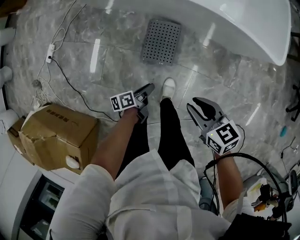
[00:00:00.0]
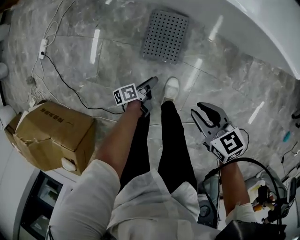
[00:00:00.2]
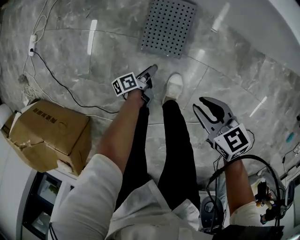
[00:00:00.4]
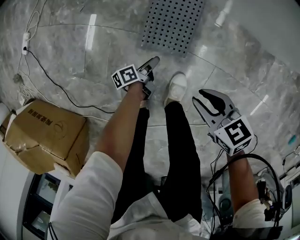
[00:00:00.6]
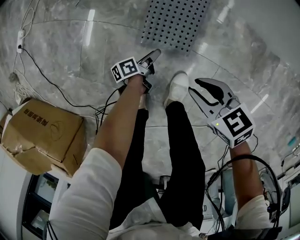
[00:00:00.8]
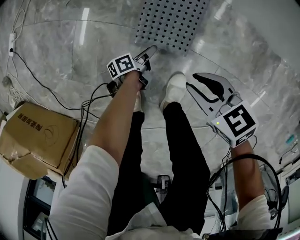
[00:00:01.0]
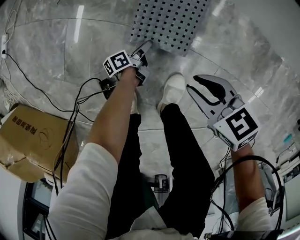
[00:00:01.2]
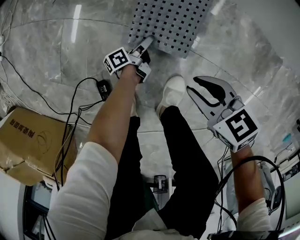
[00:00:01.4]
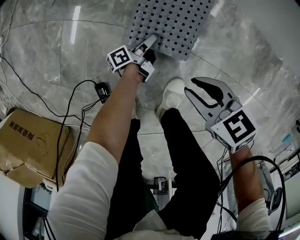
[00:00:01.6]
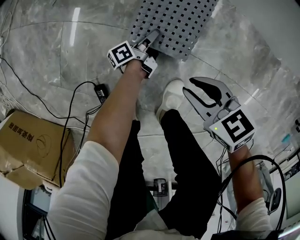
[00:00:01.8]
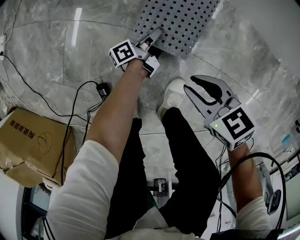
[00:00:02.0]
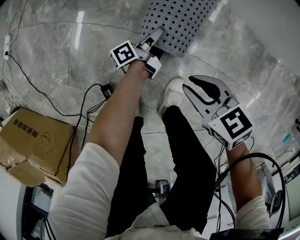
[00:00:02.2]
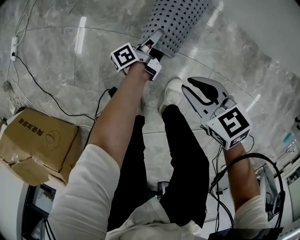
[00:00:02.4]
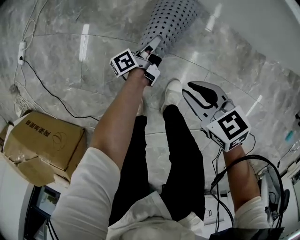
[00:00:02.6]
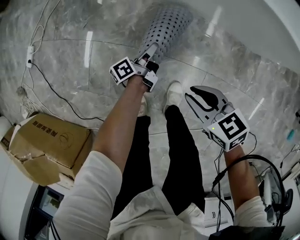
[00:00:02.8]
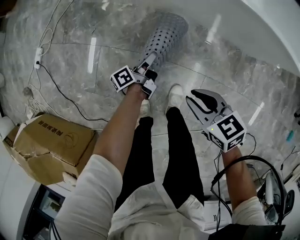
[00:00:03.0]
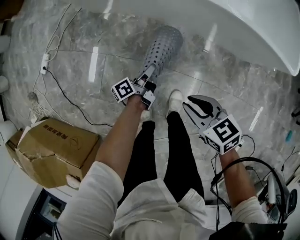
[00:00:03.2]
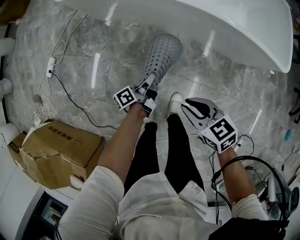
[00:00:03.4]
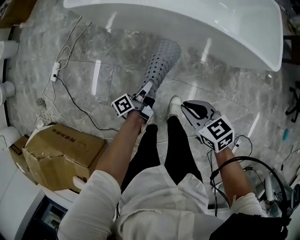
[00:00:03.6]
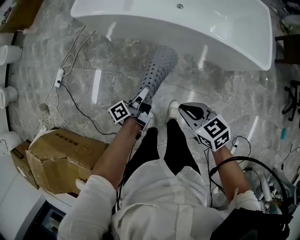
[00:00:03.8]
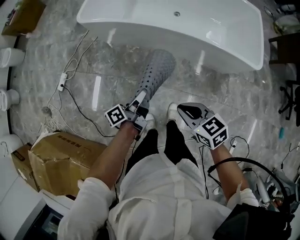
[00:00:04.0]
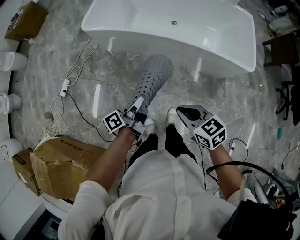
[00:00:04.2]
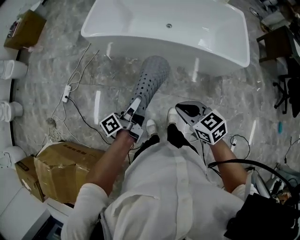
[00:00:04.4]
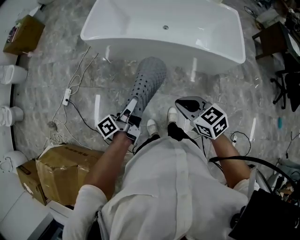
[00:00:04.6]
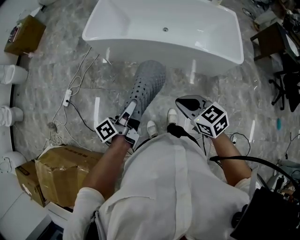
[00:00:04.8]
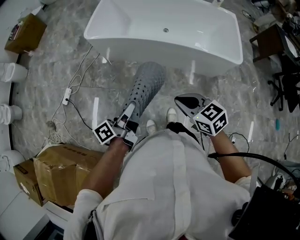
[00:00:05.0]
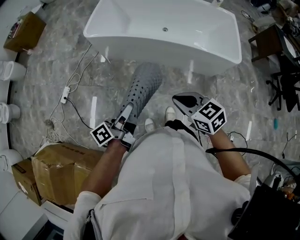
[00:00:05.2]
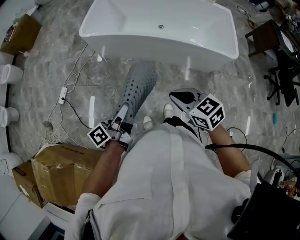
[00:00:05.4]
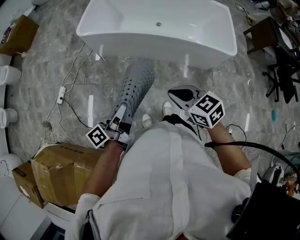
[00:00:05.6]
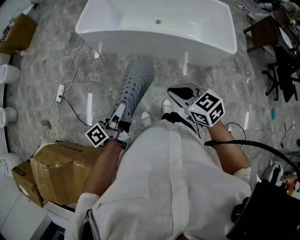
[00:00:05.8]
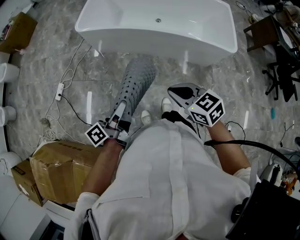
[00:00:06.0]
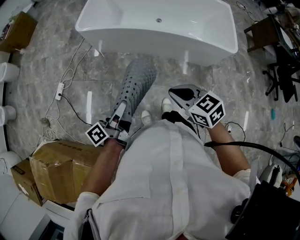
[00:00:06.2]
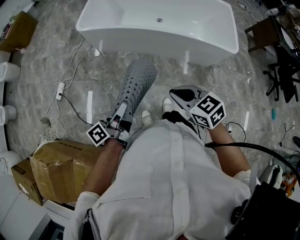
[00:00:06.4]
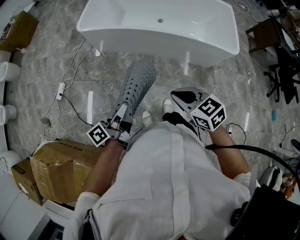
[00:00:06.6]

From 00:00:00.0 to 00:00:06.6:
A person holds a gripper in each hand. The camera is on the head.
From 00:00:00.0 to 00:00:01.6: The right gripper shifts approximately 40 cm downward, and turns by approximately 20 degrees.
From 00:00:01.6 to 00:00:03.2: The right gripper is displaced upward by approximately 35 cm.
From 00:00:03.2 to 00:00:05.0: The right gripper goes approximately 35 cm upward.

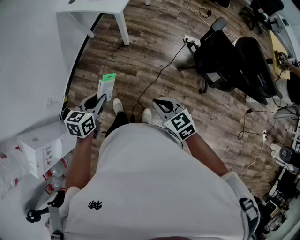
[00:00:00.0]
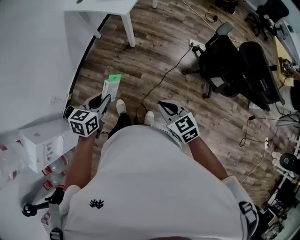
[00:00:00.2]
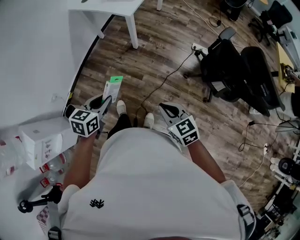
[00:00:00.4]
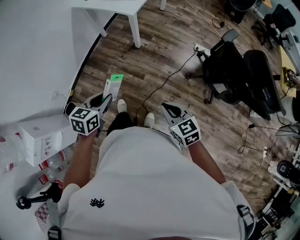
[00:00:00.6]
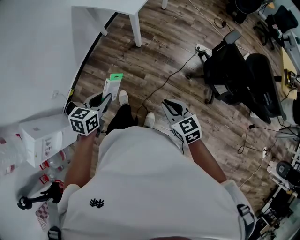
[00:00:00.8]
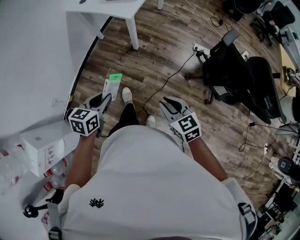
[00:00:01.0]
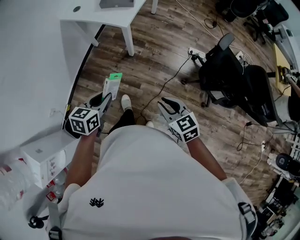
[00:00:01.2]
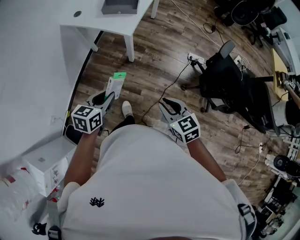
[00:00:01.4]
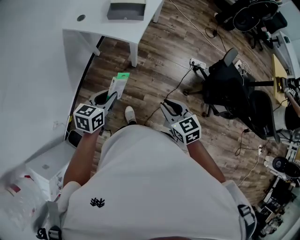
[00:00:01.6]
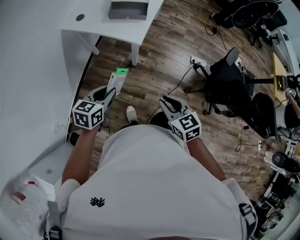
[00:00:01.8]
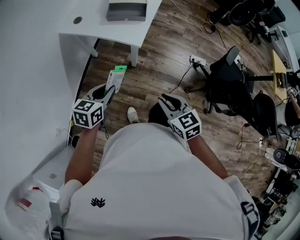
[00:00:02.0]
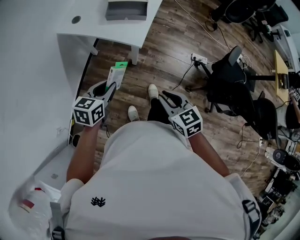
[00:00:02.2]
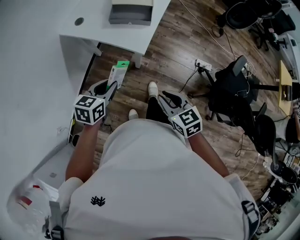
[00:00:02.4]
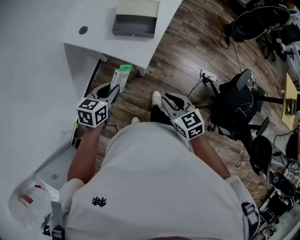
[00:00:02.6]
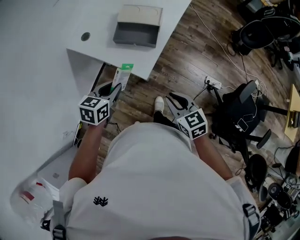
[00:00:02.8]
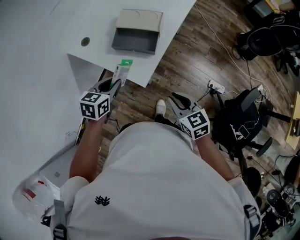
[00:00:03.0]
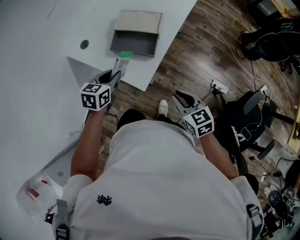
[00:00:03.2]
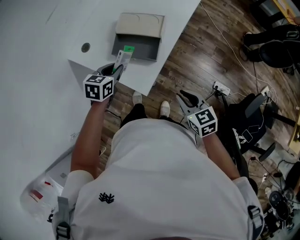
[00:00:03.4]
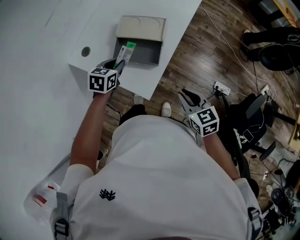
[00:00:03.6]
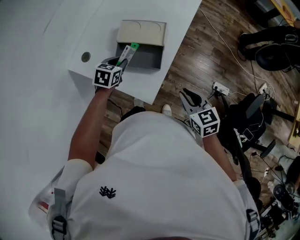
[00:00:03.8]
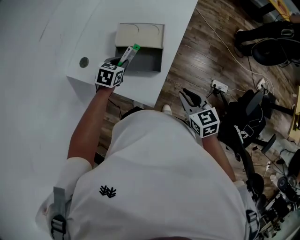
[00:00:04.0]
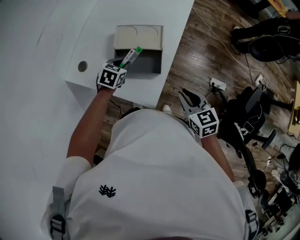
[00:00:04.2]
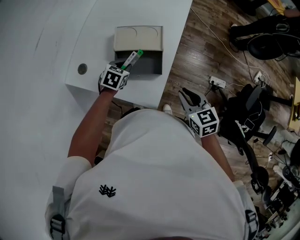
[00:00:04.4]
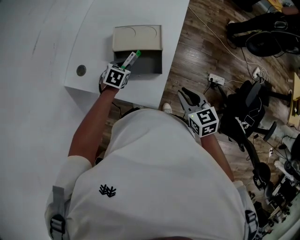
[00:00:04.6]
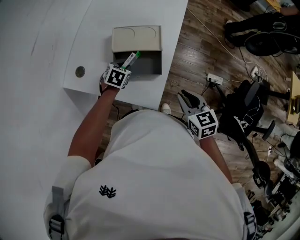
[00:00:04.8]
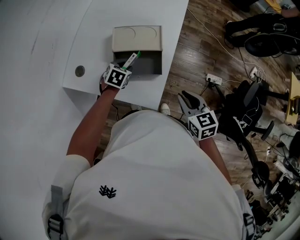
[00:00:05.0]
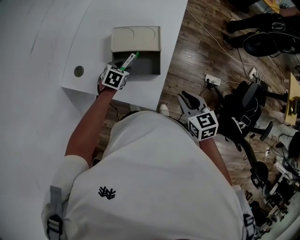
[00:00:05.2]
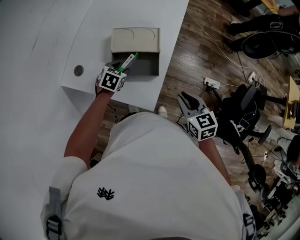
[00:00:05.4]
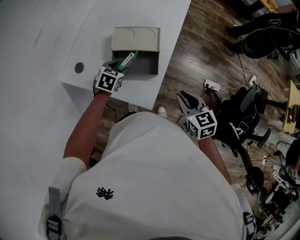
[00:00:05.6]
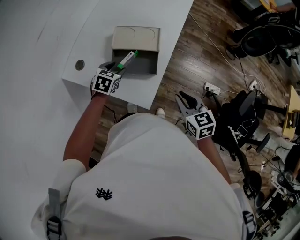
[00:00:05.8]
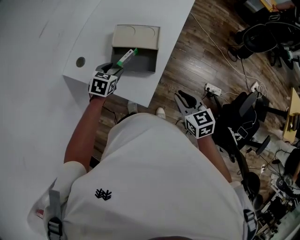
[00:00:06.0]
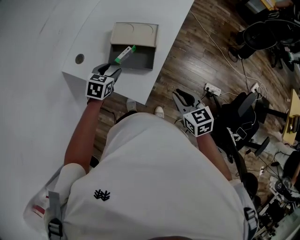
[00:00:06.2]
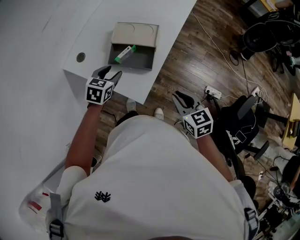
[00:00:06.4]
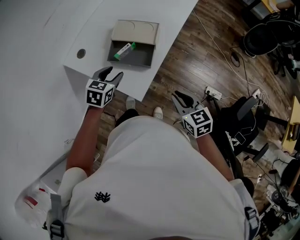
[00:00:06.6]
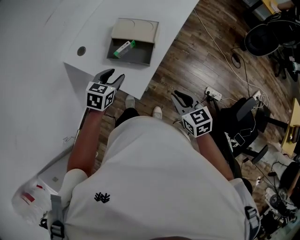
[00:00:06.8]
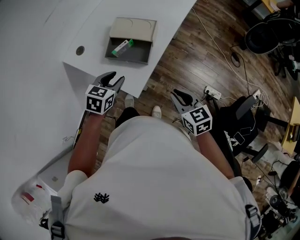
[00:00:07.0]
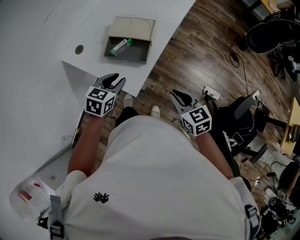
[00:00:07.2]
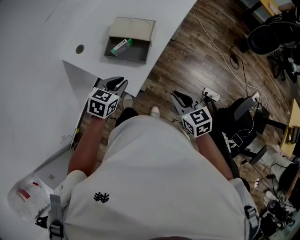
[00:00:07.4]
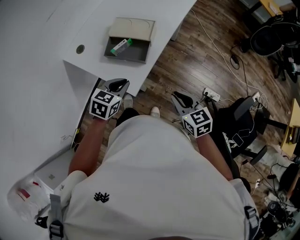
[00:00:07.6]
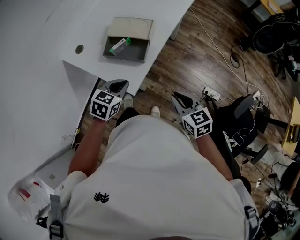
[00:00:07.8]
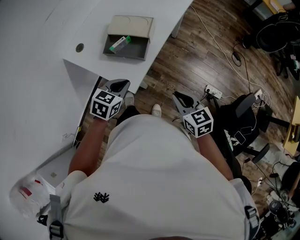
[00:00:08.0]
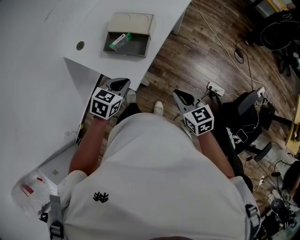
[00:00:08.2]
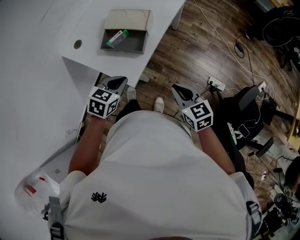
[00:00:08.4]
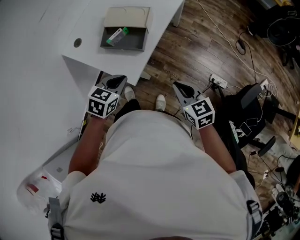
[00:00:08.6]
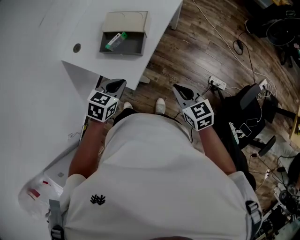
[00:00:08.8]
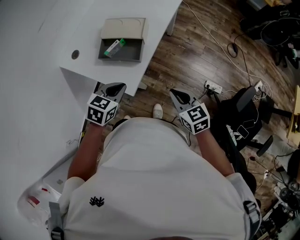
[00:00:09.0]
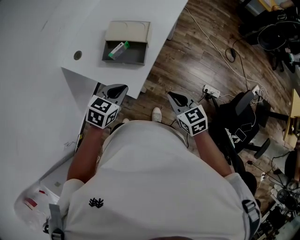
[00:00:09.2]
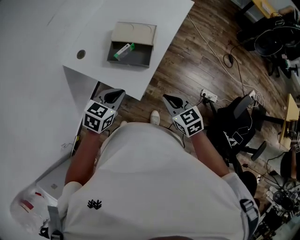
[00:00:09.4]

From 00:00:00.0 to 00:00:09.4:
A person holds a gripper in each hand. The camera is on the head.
From 00:00:00.0 to 00:00:01.6: Both grippers travel together forward, approximately 20 cm.
From 00:00:01.6 to 00:00:03.2: The grippers both shift forward by about 35 cm.
From 00:00:03.2 to 00:00:04.8: The right gripper moves forward, roughly 10 cm, and rotates about 20 degrees. The left gripper shifts about 20 cm forward and downward, and rotates some 30 degrees.
From 00:00:04.8 to 00:00:06.2: The left gripper is displaced upward and backward by roughly 10 cm, and opens.
From 00:00:06.2 to 00:00:07.8: The right gripper shifts about 5 cm backward; the left gripper is displaced backward and to the right by some 15 cm, and closes its fingers.
From 00:00:07.8 to 00:00:09.4: The left gripper moves to the left, some 5 cm. The right gripper goes roughly 10 cm to the left.

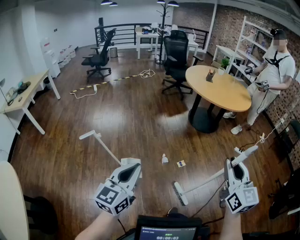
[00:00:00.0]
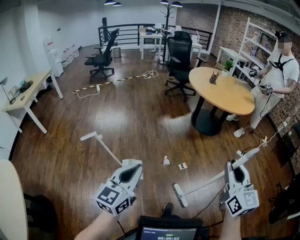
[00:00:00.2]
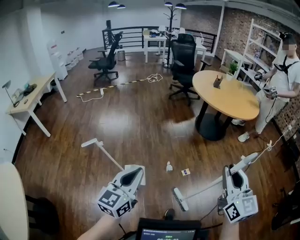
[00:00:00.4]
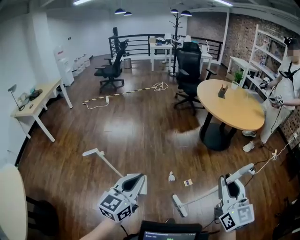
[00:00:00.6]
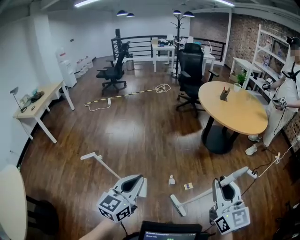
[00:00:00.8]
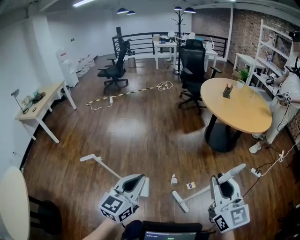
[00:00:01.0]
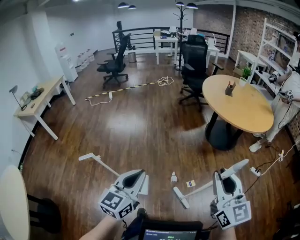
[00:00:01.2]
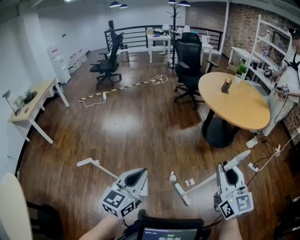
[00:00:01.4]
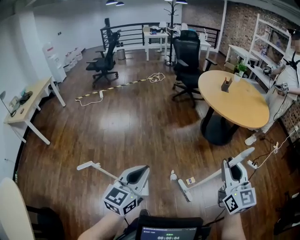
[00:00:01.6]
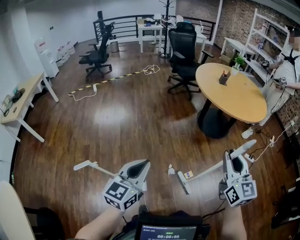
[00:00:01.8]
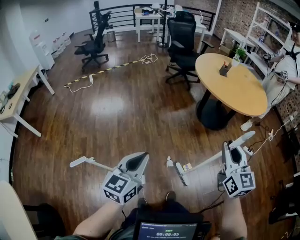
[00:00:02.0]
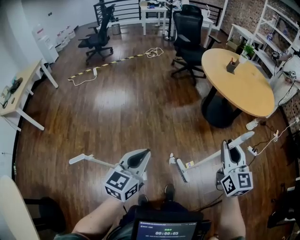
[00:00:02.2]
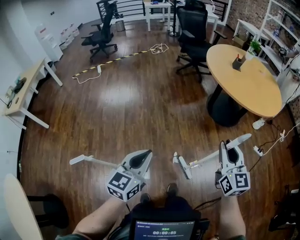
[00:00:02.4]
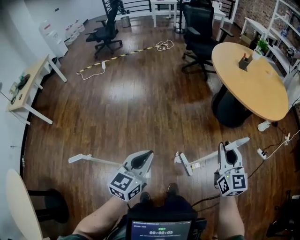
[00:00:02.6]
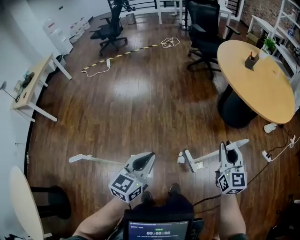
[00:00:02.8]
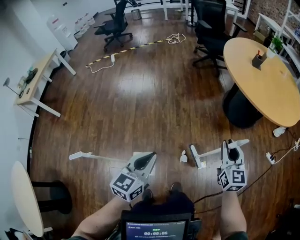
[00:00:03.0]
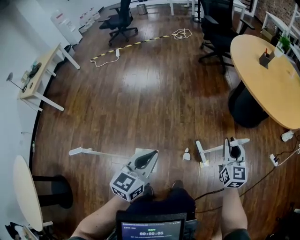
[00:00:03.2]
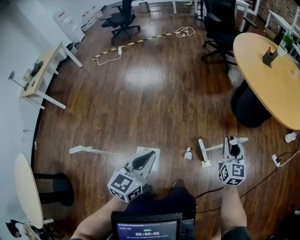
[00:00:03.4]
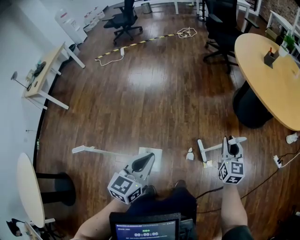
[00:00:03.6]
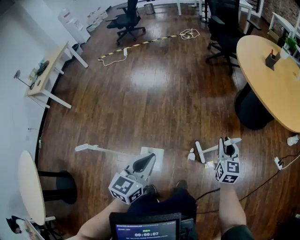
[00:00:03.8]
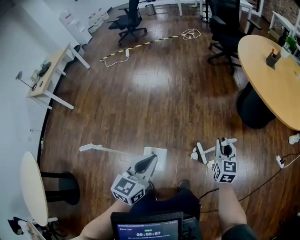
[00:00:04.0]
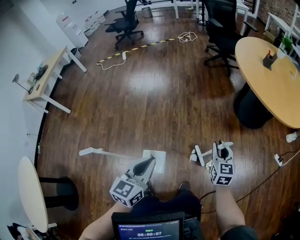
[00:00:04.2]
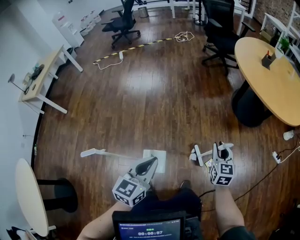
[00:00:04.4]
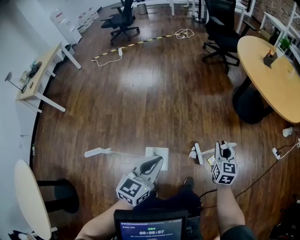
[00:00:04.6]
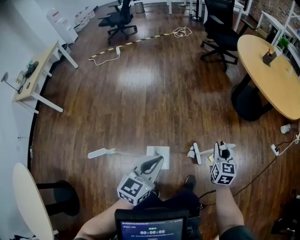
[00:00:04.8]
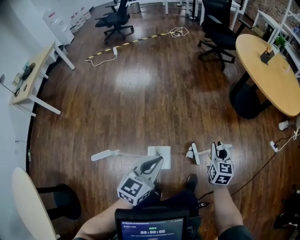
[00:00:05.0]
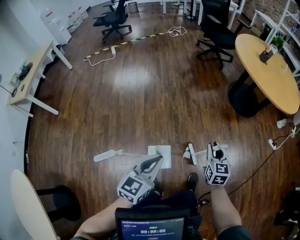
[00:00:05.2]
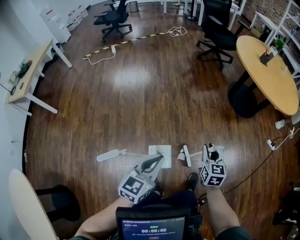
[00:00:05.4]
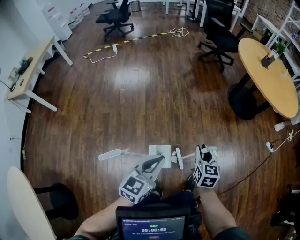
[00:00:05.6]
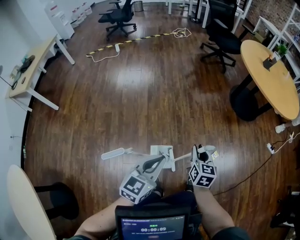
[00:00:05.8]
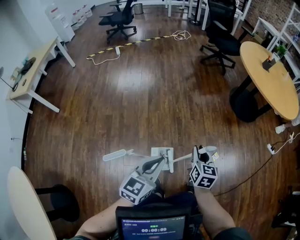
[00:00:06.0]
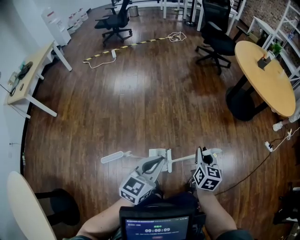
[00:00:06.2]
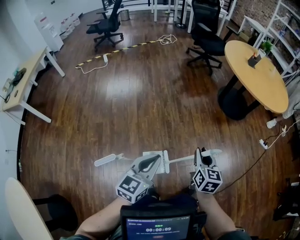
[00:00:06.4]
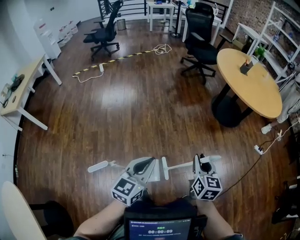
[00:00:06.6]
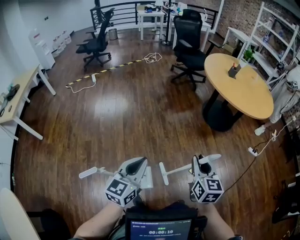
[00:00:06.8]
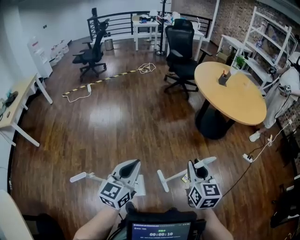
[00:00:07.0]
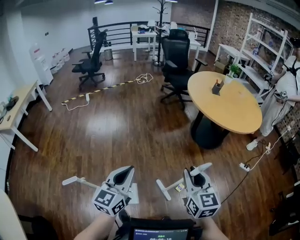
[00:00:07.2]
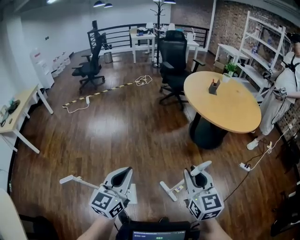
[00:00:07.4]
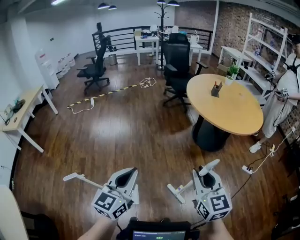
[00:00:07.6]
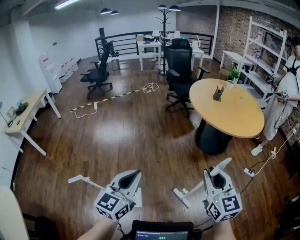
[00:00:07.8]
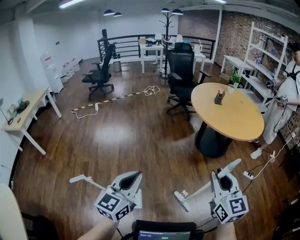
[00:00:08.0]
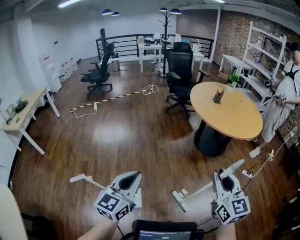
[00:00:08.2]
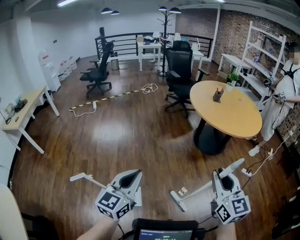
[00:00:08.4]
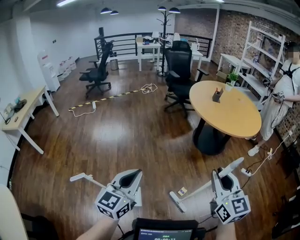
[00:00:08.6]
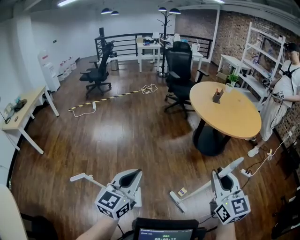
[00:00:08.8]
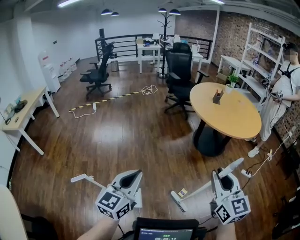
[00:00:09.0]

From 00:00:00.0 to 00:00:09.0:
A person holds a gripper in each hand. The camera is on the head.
From 00:00:00.0 to 00:00:01.6: Both grippers travel together forward, some 40 cm.
From 00:00:01.6 to 00:00:03.0: The two grippers go approximately 40 cm forward and downward.
From 00:00:03.0 to 00:00:04.4: The left gripper is displaced to the left and backward by roughly 10 cm. Meanwhile the right gripper goes roughly 15 cm to the left and downward.
From 00:00:04.4 to 00:00:06.0: The two grippers go about 40 cm to the left and backward.
From 00:00:06.0 to 00:00:07.6: The pair of grippers is taken to the right, roughly 50 cm. The two grippers go approximately 30 cm upward. The right gripper changes its angle by roughly 30 degrees.
From 00:00:07.6 to 00:00:09.0: The right gripper shifts some 15 cm backward and upward. Meanwhile the left gripper travels backward and to the left by some 10 cm.
